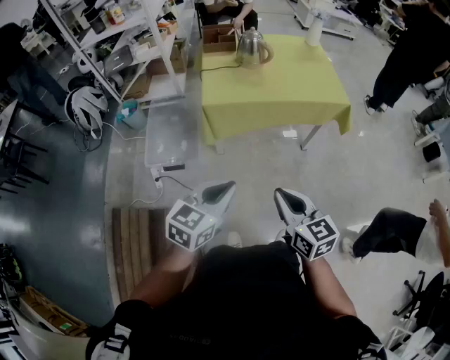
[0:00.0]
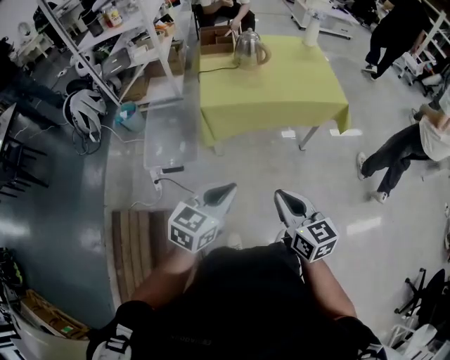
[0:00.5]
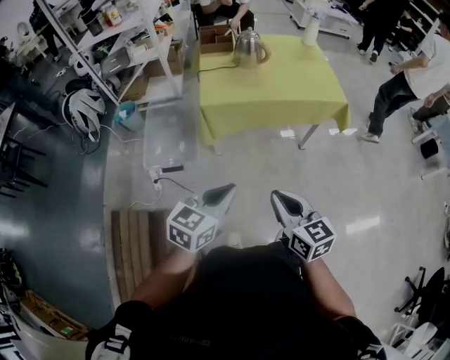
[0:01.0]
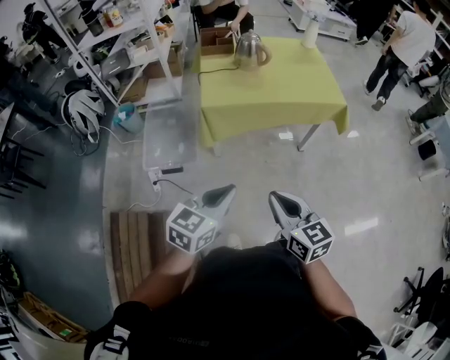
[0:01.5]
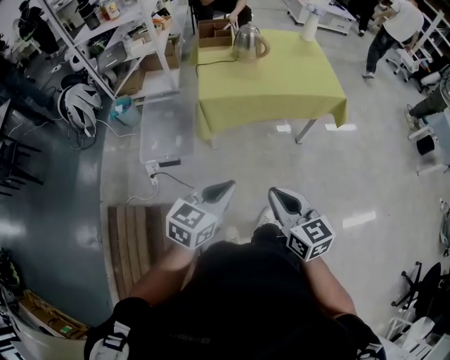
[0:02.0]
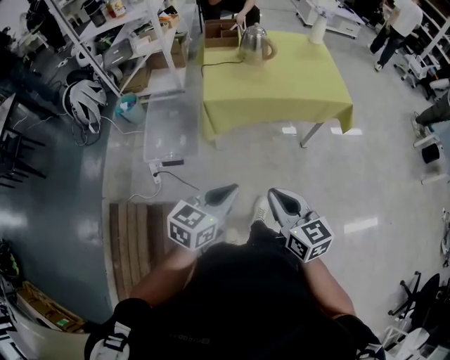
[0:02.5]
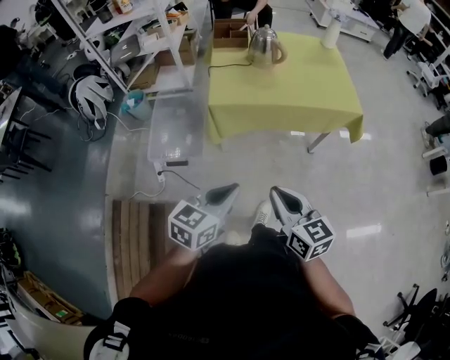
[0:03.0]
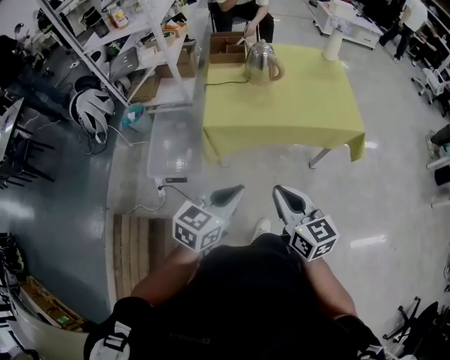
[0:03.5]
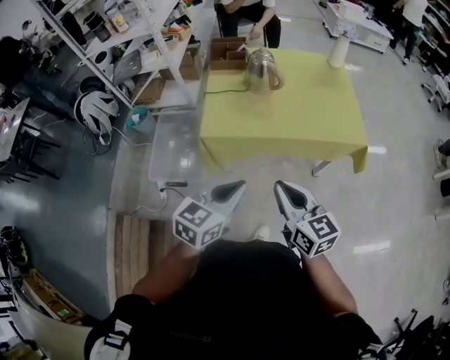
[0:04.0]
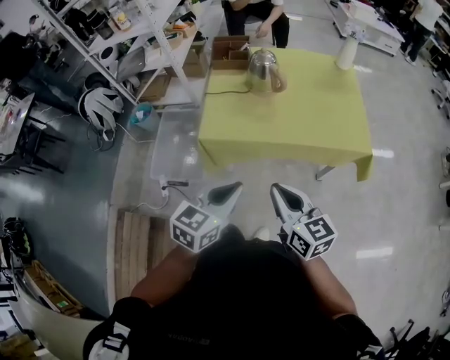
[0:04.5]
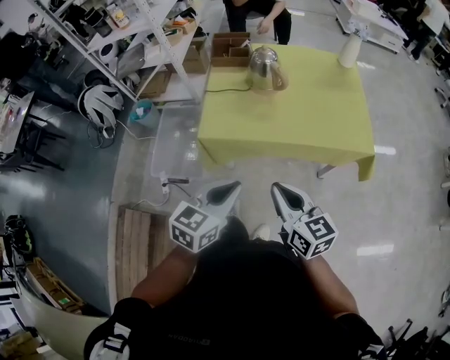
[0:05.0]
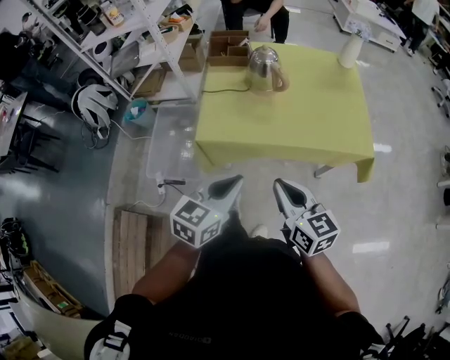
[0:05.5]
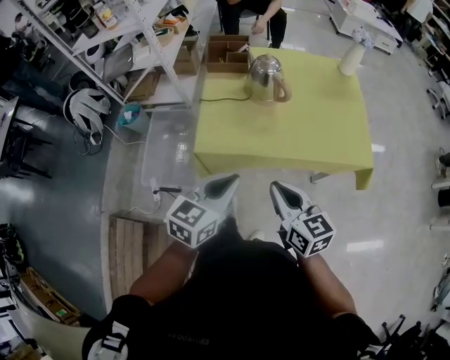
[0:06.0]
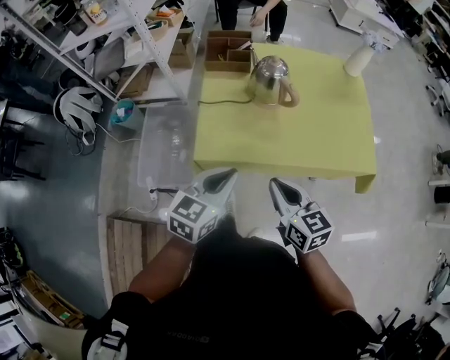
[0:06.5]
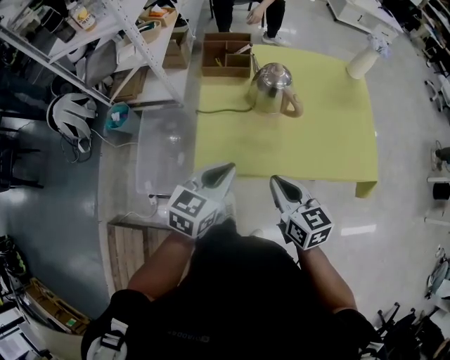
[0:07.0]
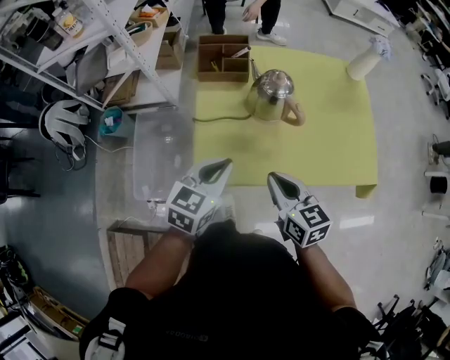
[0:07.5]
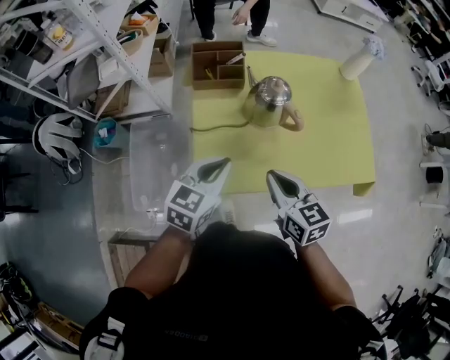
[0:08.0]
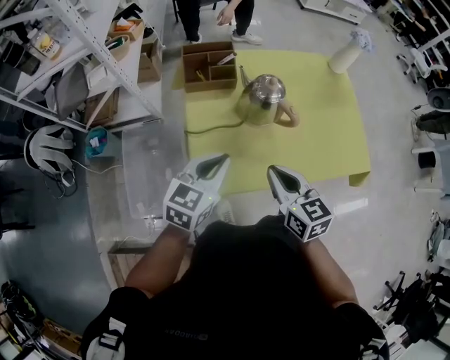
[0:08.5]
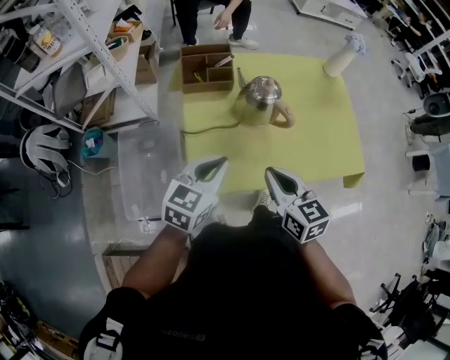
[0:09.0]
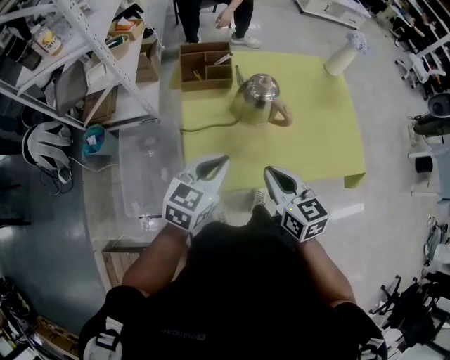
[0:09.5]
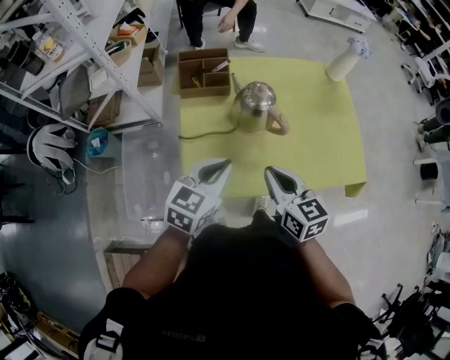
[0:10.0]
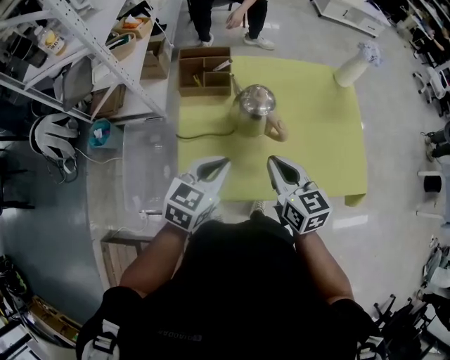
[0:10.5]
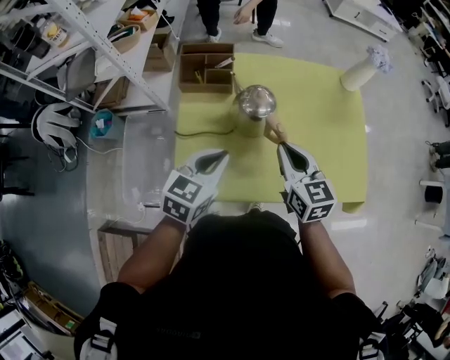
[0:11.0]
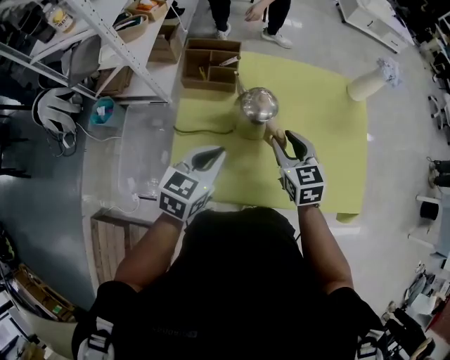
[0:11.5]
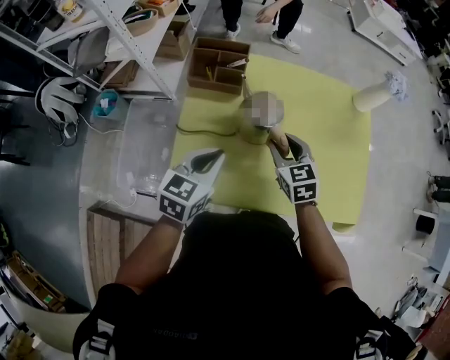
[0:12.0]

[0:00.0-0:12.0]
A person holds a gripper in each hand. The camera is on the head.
0:00.0 to 0:02.0: The grippers move only a little.
0:02.0 to 0:04.0: The right gripper heads forward, covering approximately 25 cm. Meanwhile the left gripper moves forward and to the right, approximately 25 cm.
0:04.0 to 0:06.0: Both grippers move forward, some 15 cm.
0:06.0 to 0:08.0: The two grippers go about 20 cm forward.
0:08.0 to 0:10.0: The grippers stay close to where they were, moving slightly.
0:10.0 to 0:12.0: The right gripper shifts about 20 cm forward and downward, rotates roughly 20 degrees, and opens. Meanwhile the left gripper shifts about 5 cm forward.

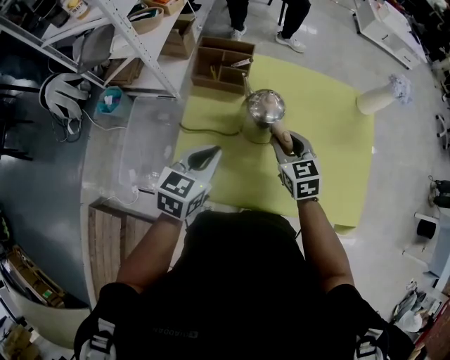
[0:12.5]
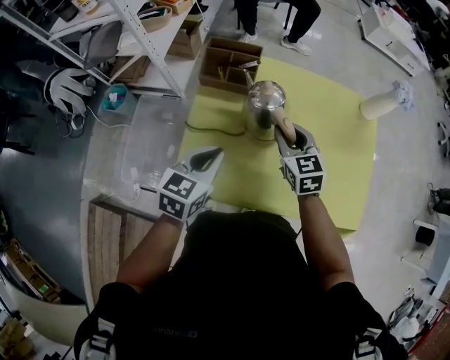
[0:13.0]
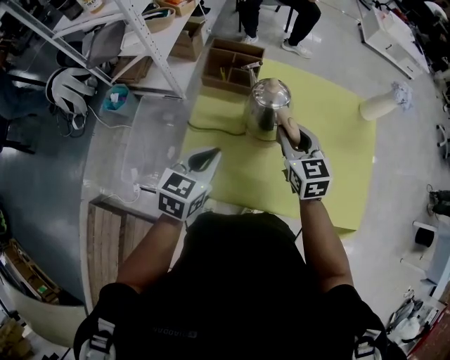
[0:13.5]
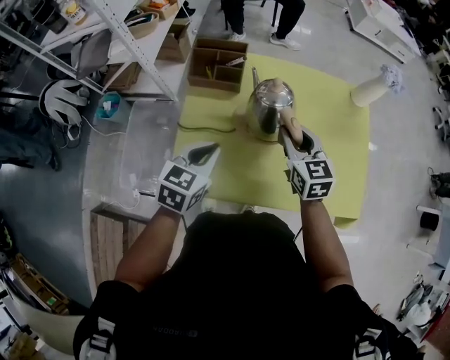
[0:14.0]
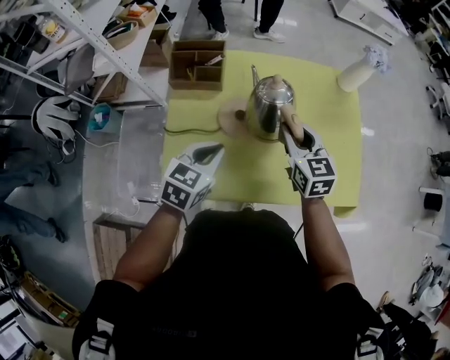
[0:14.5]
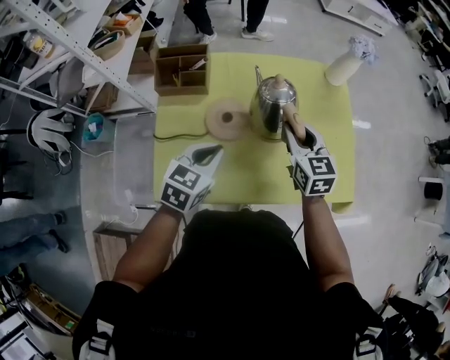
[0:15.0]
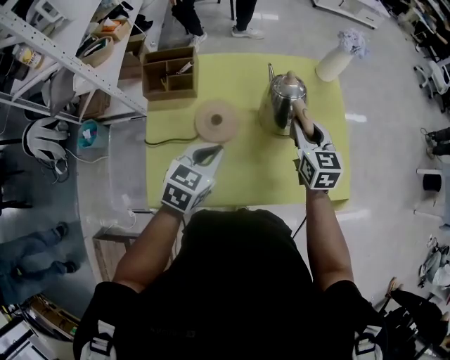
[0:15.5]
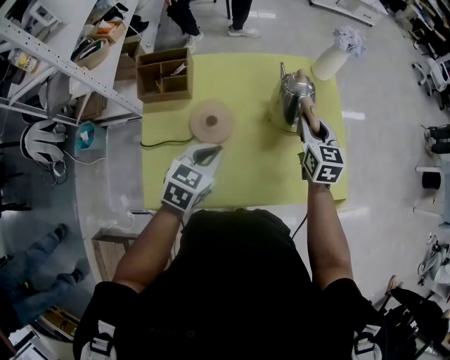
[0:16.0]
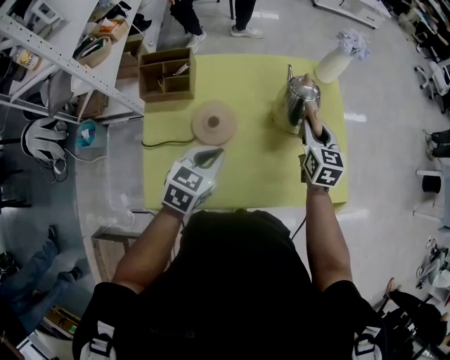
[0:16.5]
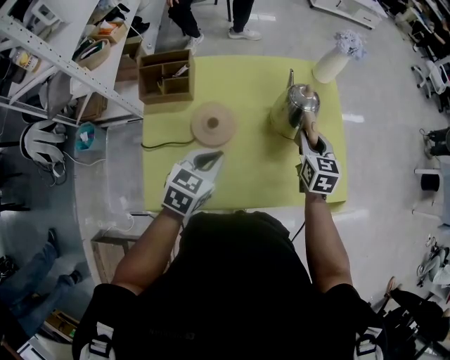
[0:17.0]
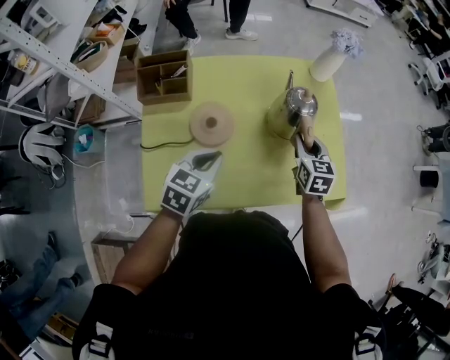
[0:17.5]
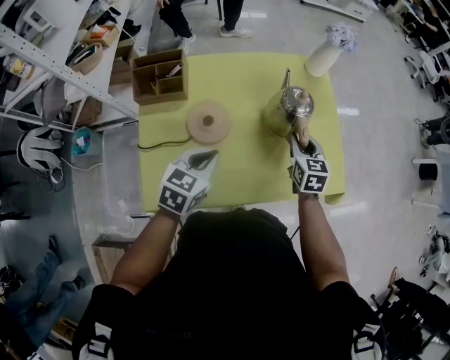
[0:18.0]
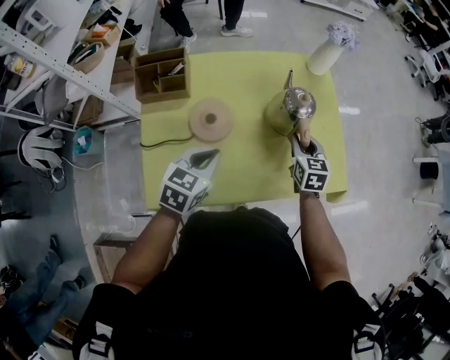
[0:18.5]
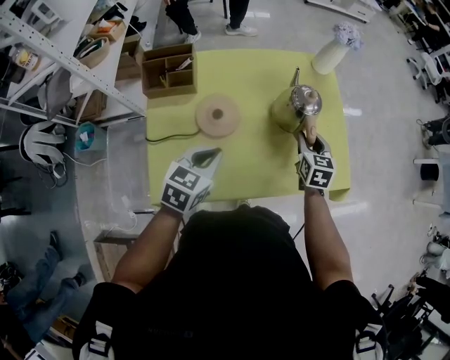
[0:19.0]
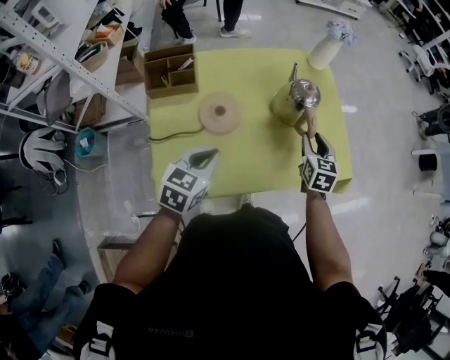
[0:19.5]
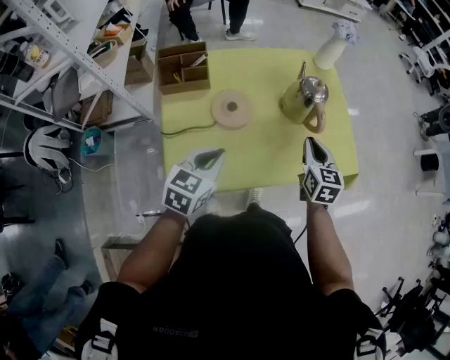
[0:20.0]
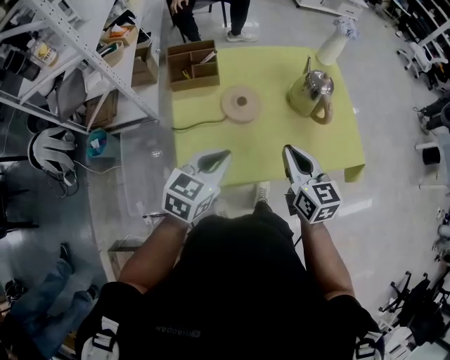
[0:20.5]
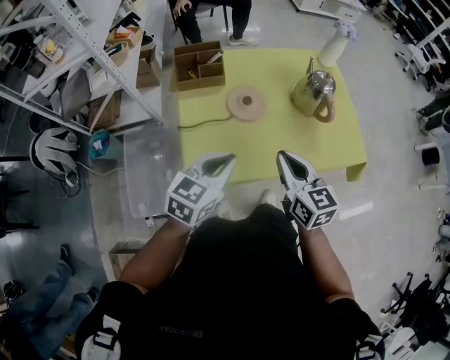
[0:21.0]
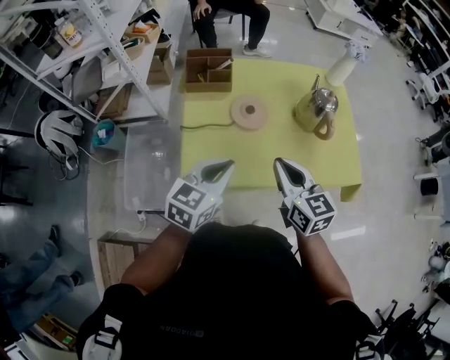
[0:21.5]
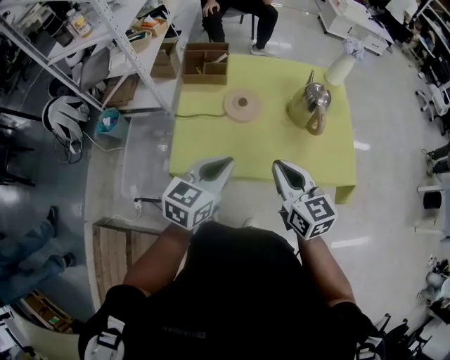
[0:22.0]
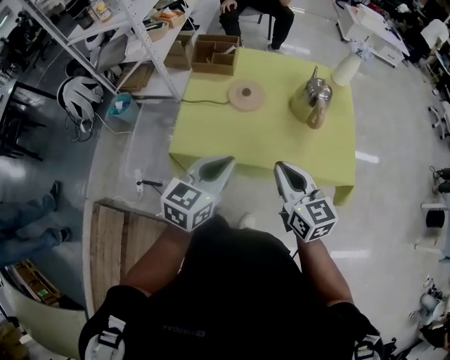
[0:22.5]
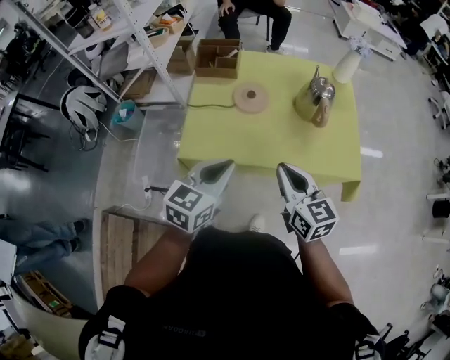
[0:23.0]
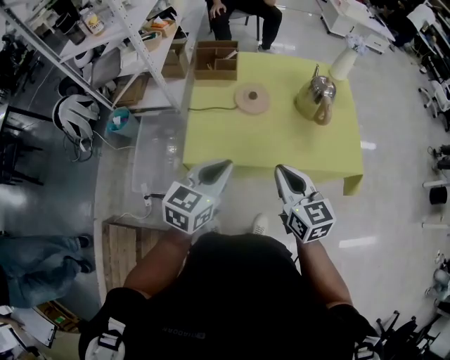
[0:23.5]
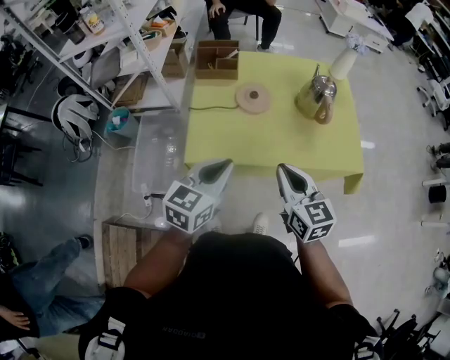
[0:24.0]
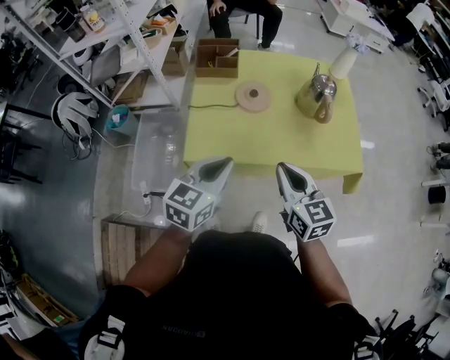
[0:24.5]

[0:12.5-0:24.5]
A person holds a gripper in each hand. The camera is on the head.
0:12.5 to 0:14.5: The left gripper shifts about 5 cm to the right, while the right gripper goes some 10 cm to the right and upward.
0:14.5 to 0:16.5: The left gripper travels to the right by about 5 cm; the right gripper is displaced to the right and forward by about 15 cm, and rotates about 20 degrees.
0:16.5 to 0:18.5: The right gripper is displaced downward and backward by approximately 10 cm.
0:18.5 to 0:20.5: The left gripper goes about 15 cm backward, to the left and upward. Meanwhile the right gripper moves backward, to the left and upward, roughly 30 cm, rotates some 20 degrees, and closes its fingers.
0:20.5 to 0:22.5: The left gripper heads to the right and backward, covering roughly 15 cm, and rotates about 20 degrees. Meanwhile the right gripper shifts about 15 cm backward and to the right, and rotates about 20 degrees.
0:22.5 to 0:24.5: Both grippers move to the left, roughly 10 cm.

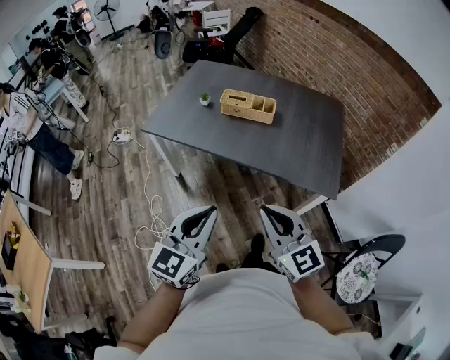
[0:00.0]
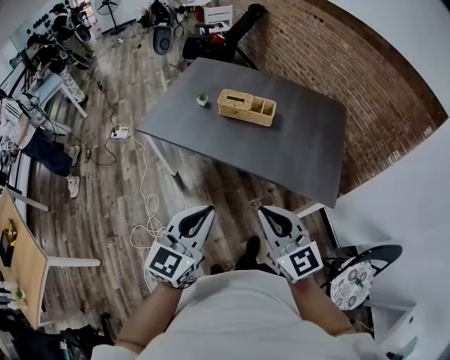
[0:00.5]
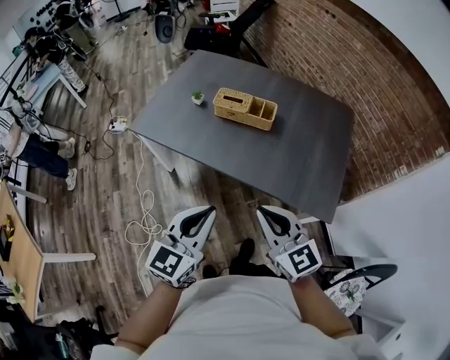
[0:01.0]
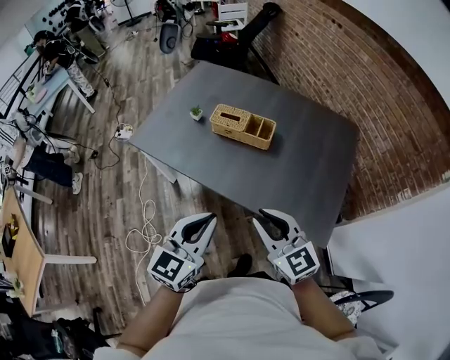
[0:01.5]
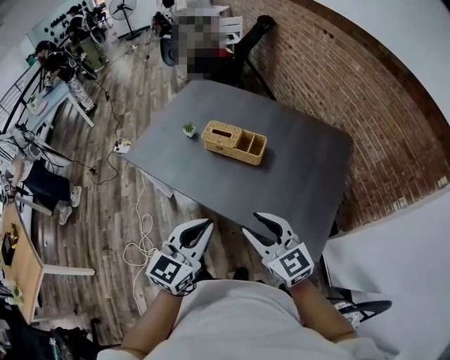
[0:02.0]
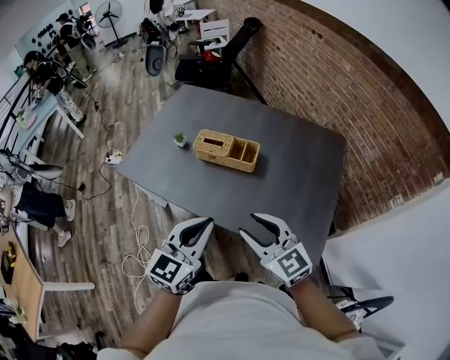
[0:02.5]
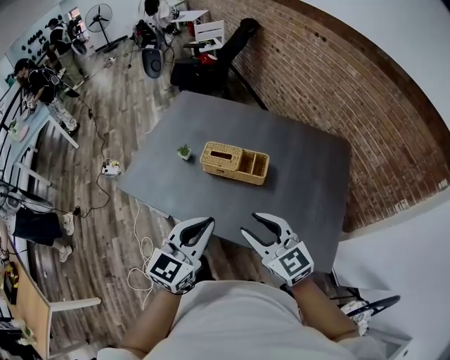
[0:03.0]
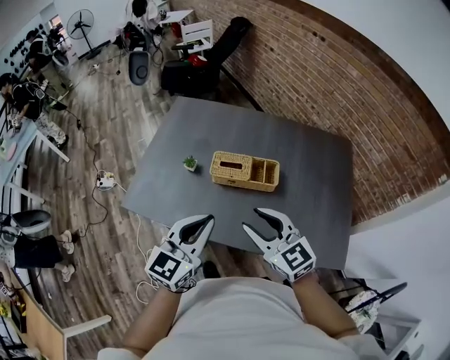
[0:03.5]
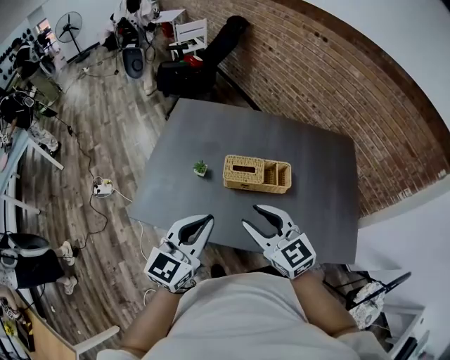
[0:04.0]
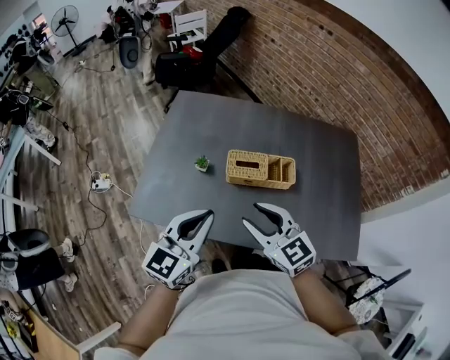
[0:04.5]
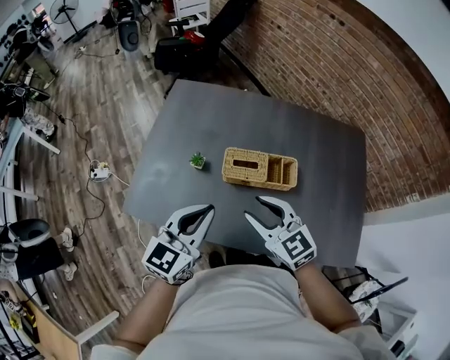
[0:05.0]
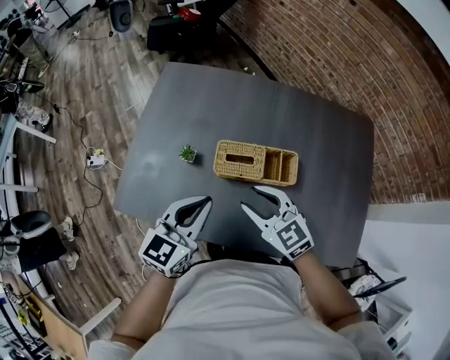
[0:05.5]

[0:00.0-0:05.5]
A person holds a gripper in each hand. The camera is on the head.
0:00.0 to 0:02.0: Both grippers travel together forward and to the right, approximately 25 cm. The right gripper opens its fingers.
0:02.0 to 0:03.5: Both grippers move forward and to the left, some 25 cm.
0:03.5 to 0:05.5: Both grippers move forward and downward, some 20 cm.
